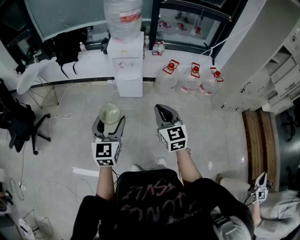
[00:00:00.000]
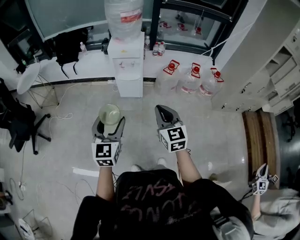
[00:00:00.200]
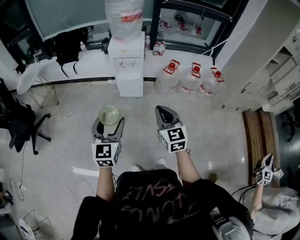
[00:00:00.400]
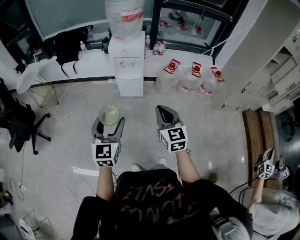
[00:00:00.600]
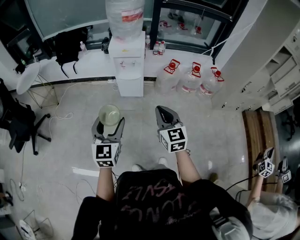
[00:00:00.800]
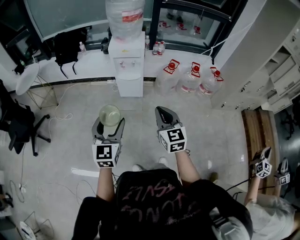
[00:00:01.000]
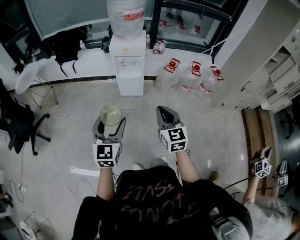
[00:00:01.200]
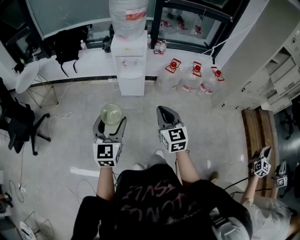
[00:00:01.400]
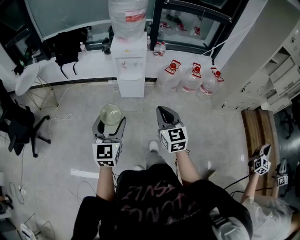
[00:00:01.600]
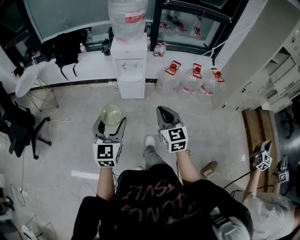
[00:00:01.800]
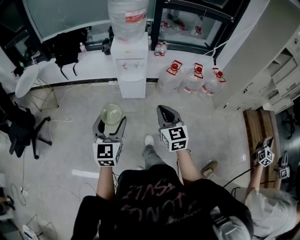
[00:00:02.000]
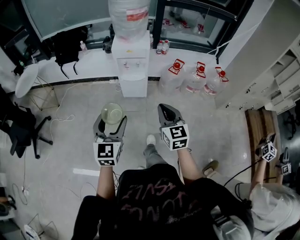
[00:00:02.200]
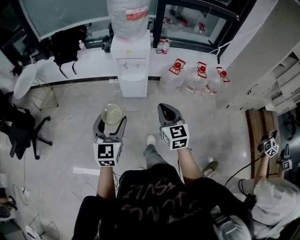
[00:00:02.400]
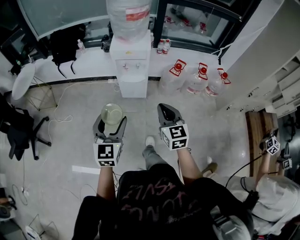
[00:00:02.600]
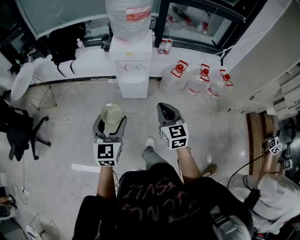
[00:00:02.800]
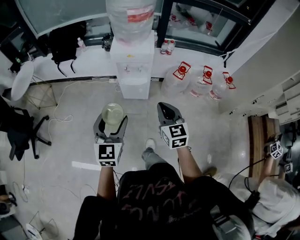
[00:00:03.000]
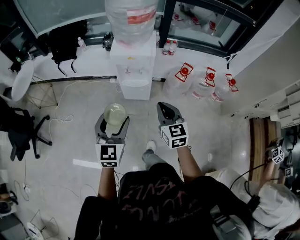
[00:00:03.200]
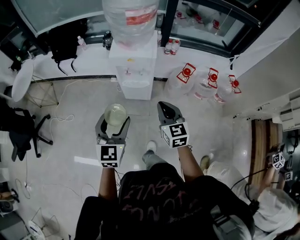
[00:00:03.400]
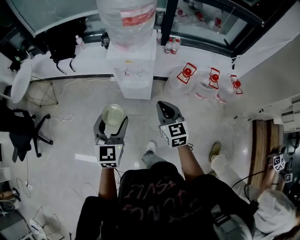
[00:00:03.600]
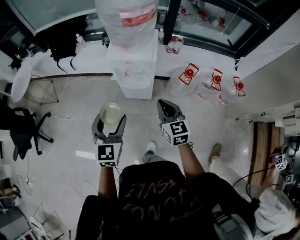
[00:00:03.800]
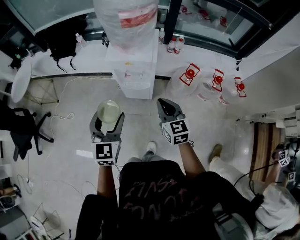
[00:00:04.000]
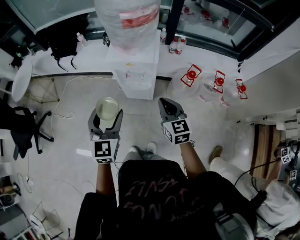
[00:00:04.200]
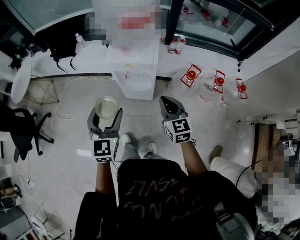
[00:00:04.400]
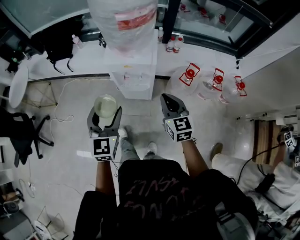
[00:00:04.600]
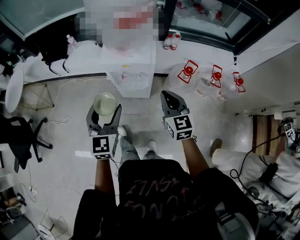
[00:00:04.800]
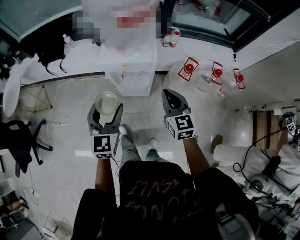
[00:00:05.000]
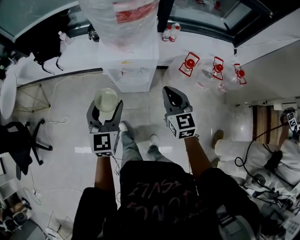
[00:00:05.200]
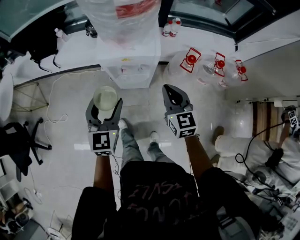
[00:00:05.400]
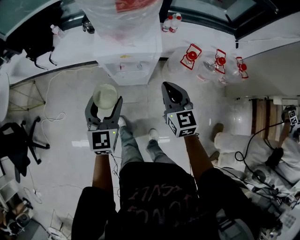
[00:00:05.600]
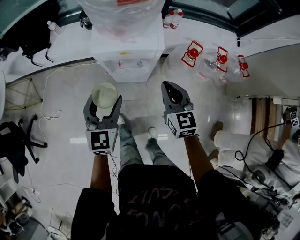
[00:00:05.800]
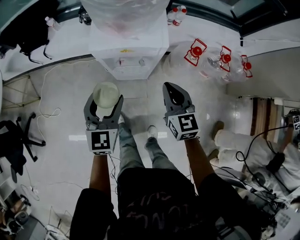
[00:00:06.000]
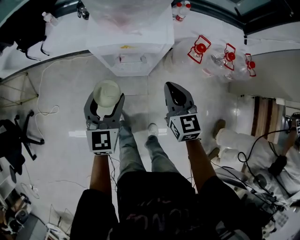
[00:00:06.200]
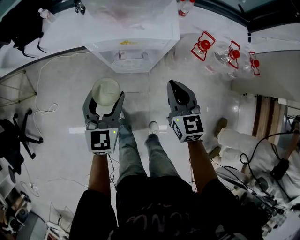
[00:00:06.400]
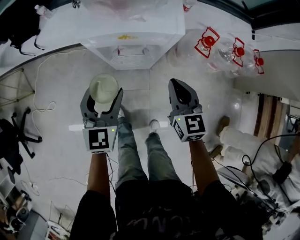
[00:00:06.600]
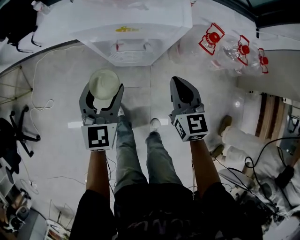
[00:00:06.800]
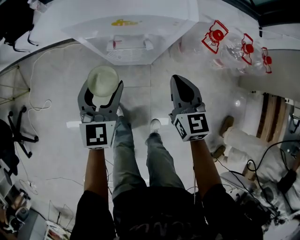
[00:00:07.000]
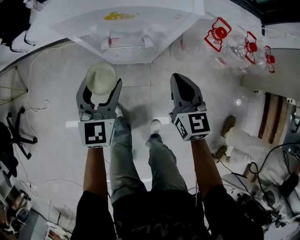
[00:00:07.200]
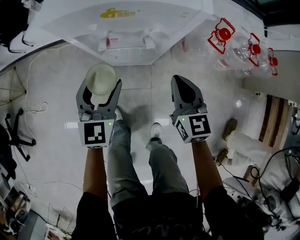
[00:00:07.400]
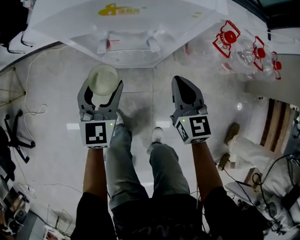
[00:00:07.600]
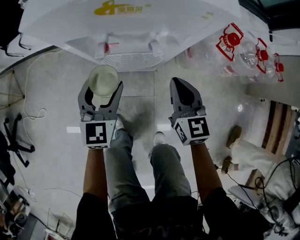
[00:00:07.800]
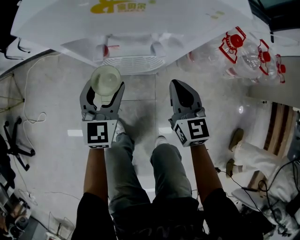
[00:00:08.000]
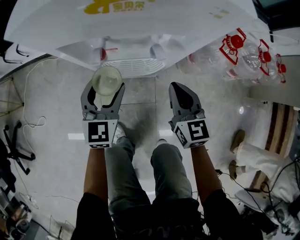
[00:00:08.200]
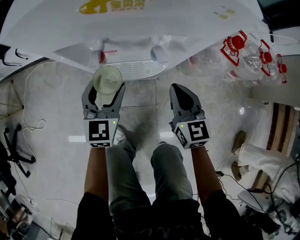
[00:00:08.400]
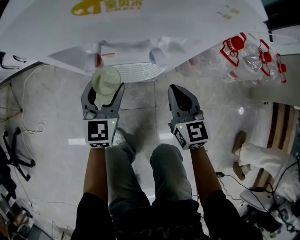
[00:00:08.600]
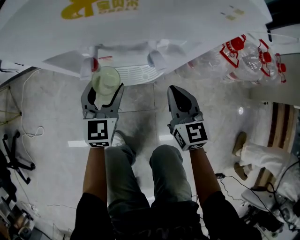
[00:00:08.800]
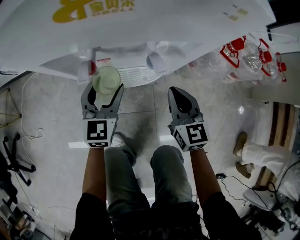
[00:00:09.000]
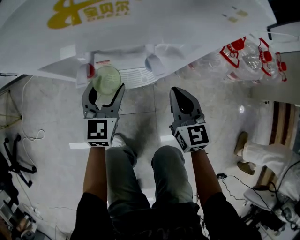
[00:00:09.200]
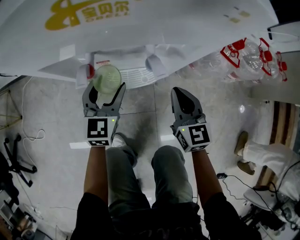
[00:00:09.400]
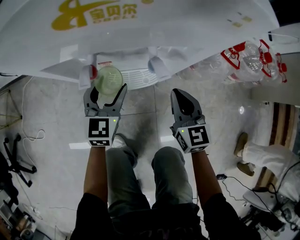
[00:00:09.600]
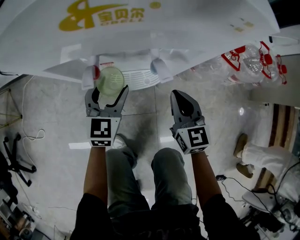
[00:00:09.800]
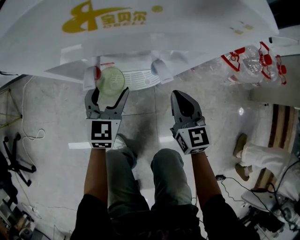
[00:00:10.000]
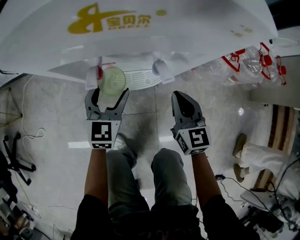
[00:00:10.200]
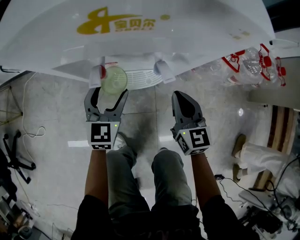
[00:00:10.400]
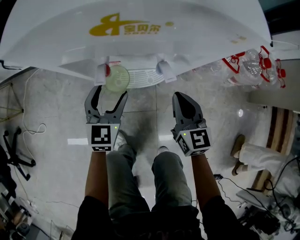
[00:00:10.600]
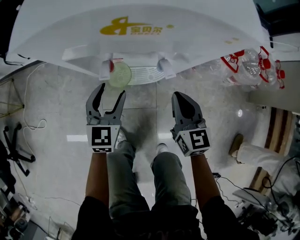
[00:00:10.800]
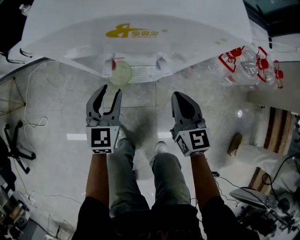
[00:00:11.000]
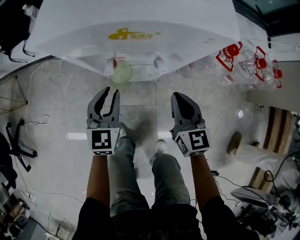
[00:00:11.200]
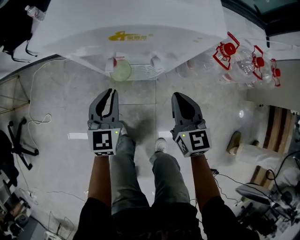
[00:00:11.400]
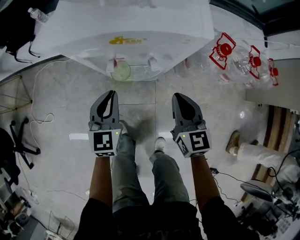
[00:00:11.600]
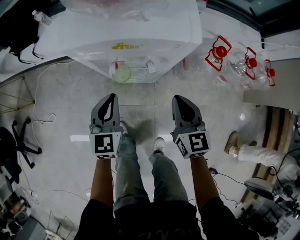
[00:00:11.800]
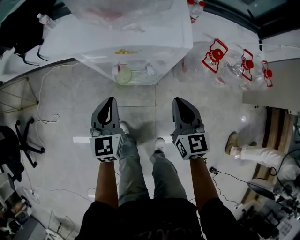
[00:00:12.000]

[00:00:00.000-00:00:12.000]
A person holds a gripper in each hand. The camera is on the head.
00:00:00.000 to 00:00:01.600: The left gripper moves to the left, about 5 cm.
00:00:01.600 to 00:00:03.000: The grippers both shift forward by approximately 20 cm.
00:00:03.000 to 00:00:04.400: Both grippers move forward, roughly 20 cm.
00:00:04.400 to 00:00:06.000: The grippers both shift downward and forward by about 15 cm.
00:00:06.000 to 00:00:07.600: The grippers both shift downward by some 25 cm.
00:00:07.600 to 00:00:09.000: The right gripper moves downward, about 10 cm. The left gripper heads downward and forward, covering some 15 cm.
00:00:09.000 to 00:00:10.400: The grippers move only a little.
00:00:10.400 to 00:00:12.000: The right gripper heads upward, covering approximately 20 cm, while the left gripper travels upward and backward by roughly 20 cm, and closes up.

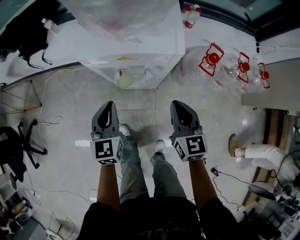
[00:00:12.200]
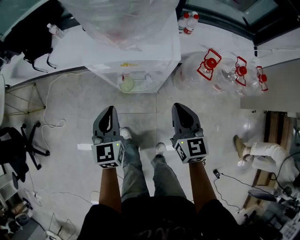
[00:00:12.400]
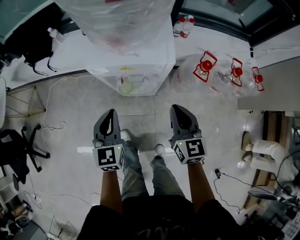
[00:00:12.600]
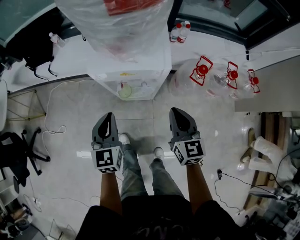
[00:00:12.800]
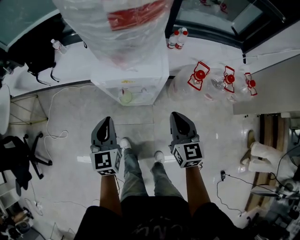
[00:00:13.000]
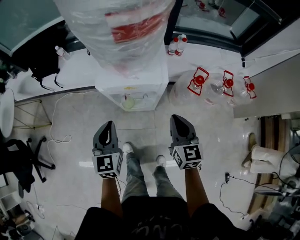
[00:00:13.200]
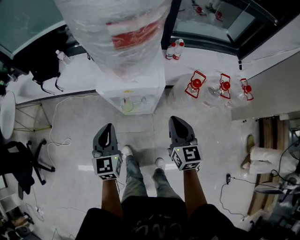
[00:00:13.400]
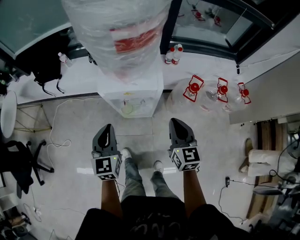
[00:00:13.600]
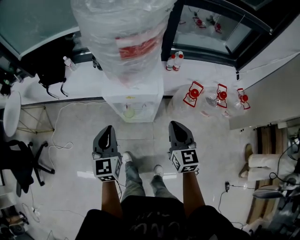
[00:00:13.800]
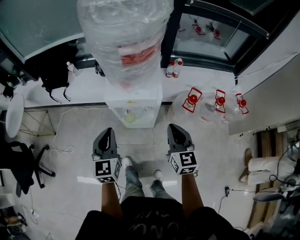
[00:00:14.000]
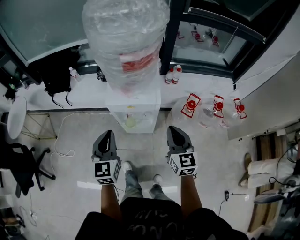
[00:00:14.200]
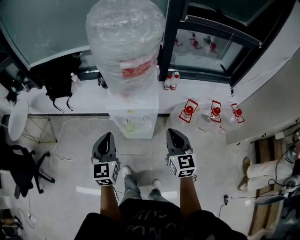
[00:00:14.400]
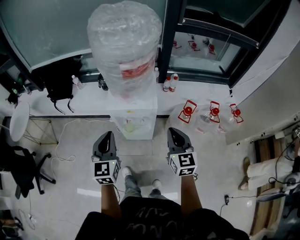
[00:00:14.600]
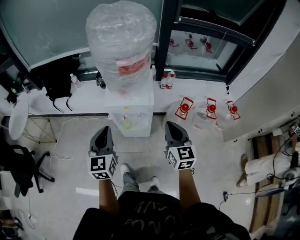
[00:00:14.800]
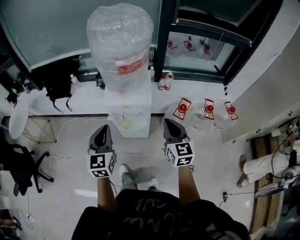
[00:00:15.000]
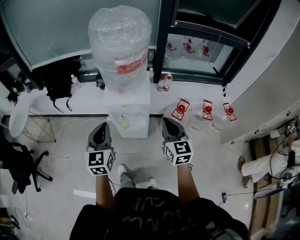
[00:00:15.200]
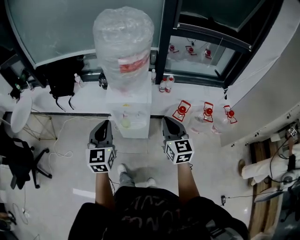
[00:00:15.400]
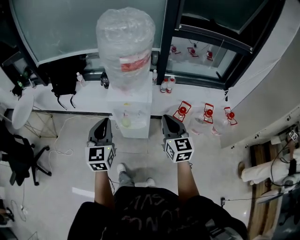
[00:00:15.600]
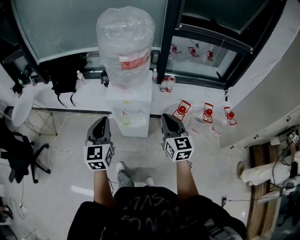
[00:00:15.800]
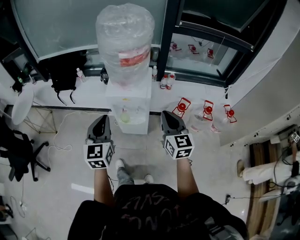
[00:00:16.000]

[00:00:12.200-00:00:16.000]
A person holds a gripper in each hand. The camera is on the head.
00:00:12.200 to 00:00:13.400: The grippers both shift upward by about 15 cm.
00:00:13.400 to 00:00:14.800: The two grippers go some 15 cm upward.
00:00:14.800 to 00:00:16.000: The right gripper changes place by some 5 cm. Meanwhile the left gripper travels backward and upward by approximately 10 cm.

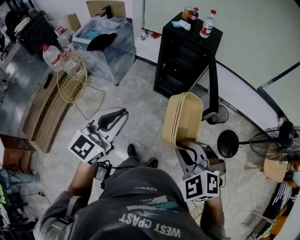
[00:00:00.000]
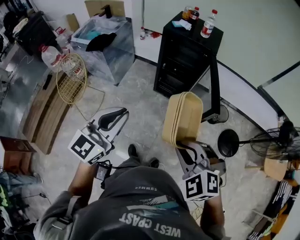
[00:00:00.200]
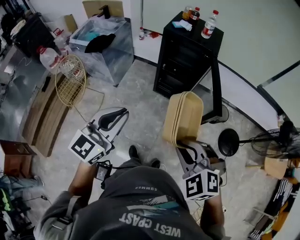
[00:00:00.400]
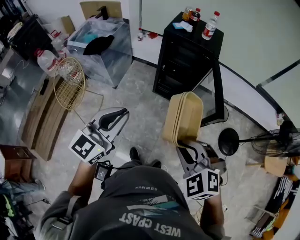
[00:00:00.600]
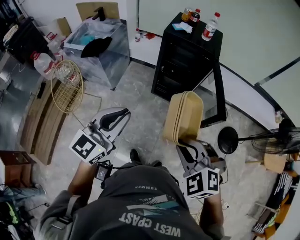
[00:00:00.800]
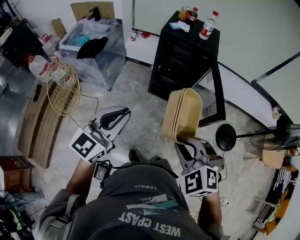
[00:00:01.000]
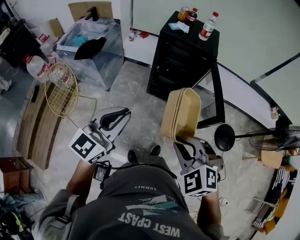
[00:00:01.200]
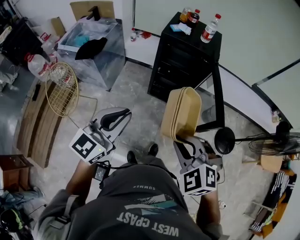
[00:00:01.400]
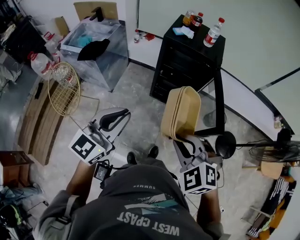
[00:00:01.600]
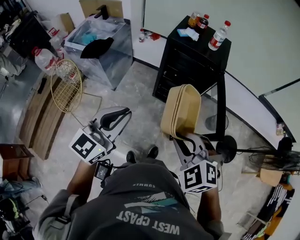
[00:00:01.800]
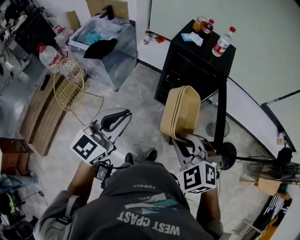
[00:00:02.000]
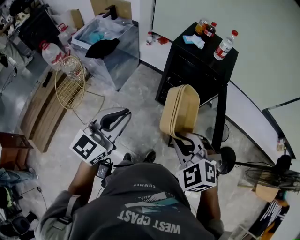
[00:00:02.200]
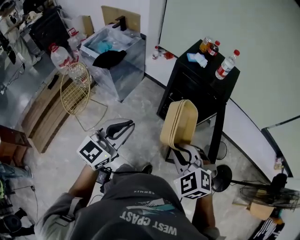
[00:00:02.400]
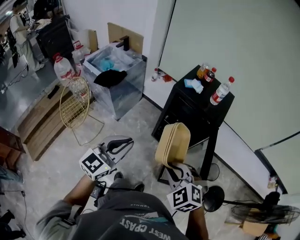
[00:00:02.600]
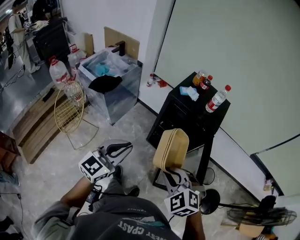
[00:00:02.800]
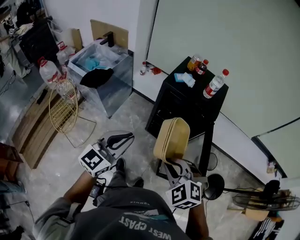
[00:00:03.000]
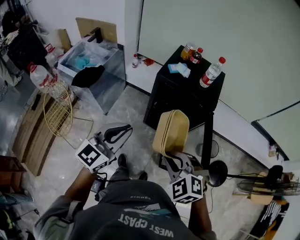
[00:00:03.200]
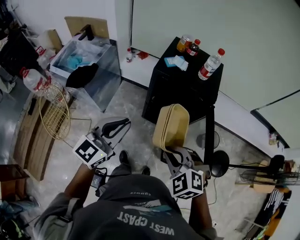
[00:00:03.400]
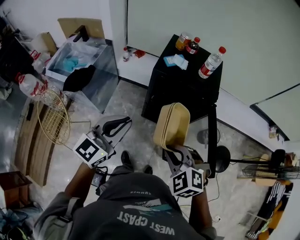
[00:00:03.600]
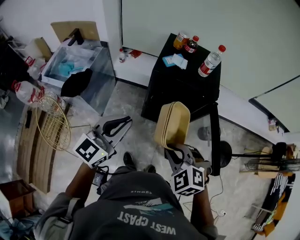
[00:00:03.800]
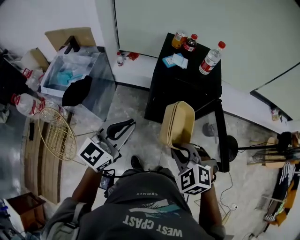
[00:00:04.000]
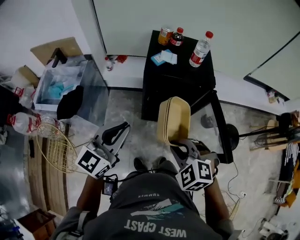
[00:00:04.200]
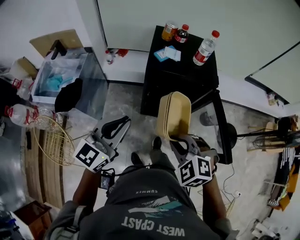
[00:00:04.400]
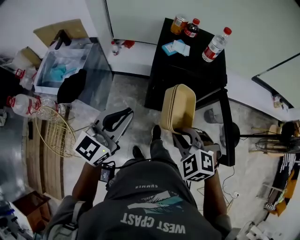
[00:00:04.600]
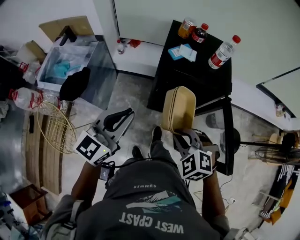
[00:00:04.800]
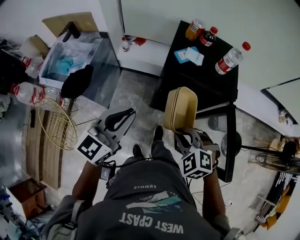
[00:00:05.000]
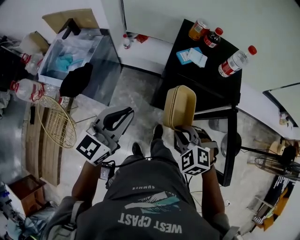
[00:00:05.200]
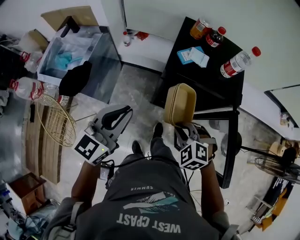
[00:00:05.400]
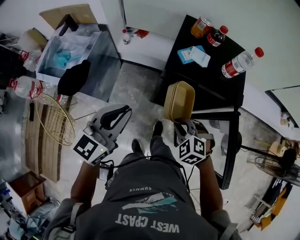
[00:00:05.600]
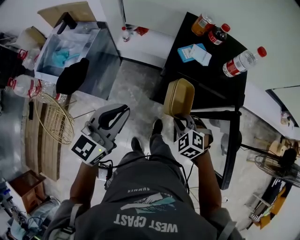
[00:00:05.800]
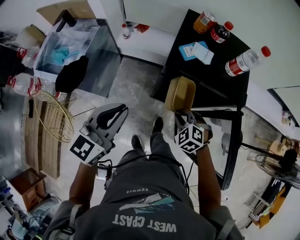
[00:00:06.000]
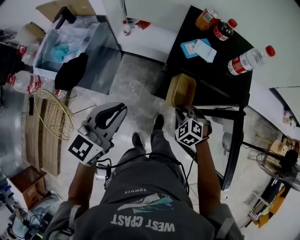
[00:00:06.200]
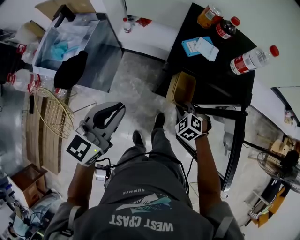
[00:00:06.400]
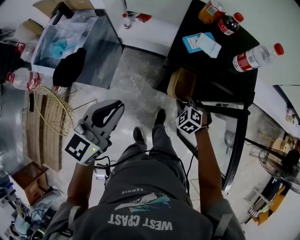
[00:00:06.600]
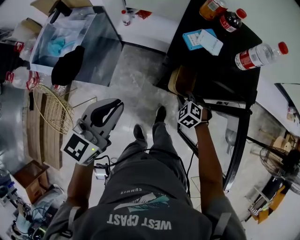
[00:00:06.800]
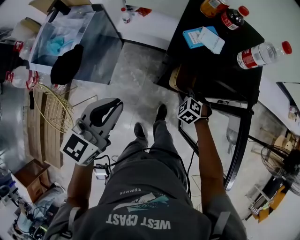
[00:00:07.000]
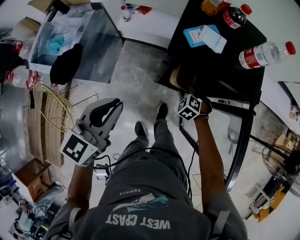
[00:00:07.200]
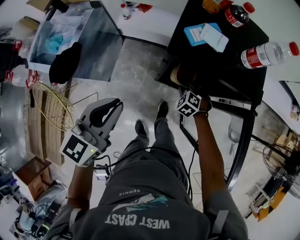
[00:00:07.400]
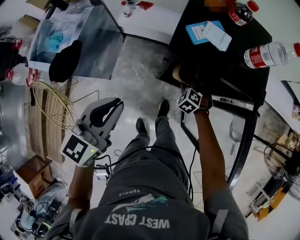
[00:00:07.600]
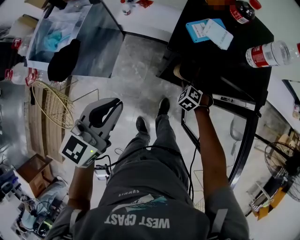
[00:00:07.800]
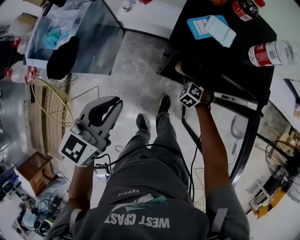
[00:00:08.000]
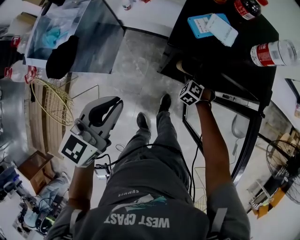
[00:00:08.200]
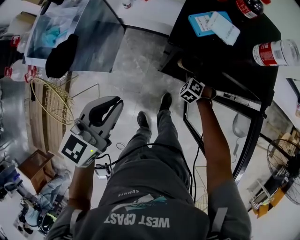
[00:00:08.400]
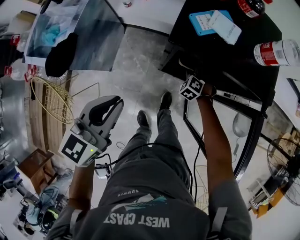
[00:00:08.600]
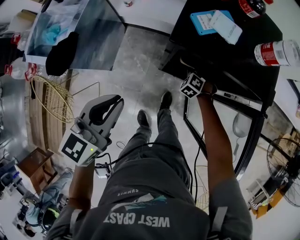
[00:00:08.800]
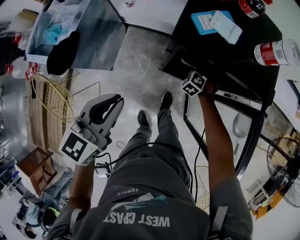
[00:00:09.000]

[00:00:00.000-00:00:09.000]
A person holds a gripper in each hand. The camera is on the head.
00:00:00.000 to 00:00:01.600: Both grippers move forward and to the left, approximately 15 cm.
00:00:01.600 to 00:00:03.000: Both grippers travel together forward, about 15 cm.
00:00:03.000 to 00:00:04.400: The grippers both shift forward and to the left by roughly 15 cm.
00:00:04.400 to 00:00:06.000: The right gripper moves downward and forward, approximately 25 cm; the left gripper travels forward and downward by about 10 cm.
00:00:06.000 to 00:00:07.600: The right gripper moves downward and forward, some 20 cm.
00:00:07.600 to 00:00:09.000: The right gripper shifts about 5 cm forward.
